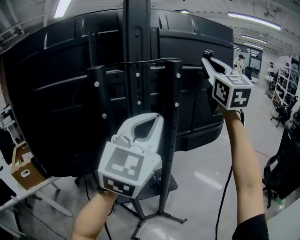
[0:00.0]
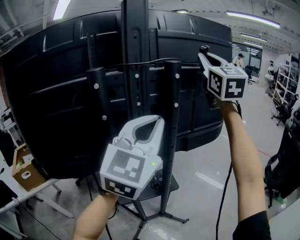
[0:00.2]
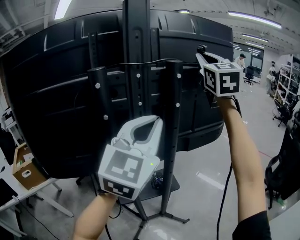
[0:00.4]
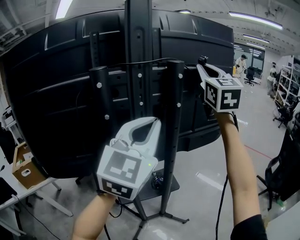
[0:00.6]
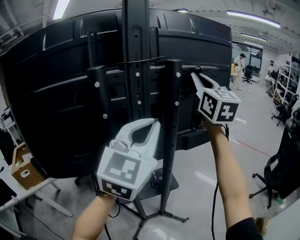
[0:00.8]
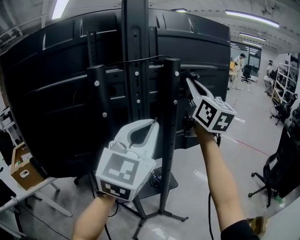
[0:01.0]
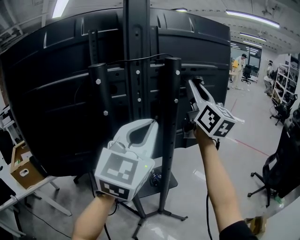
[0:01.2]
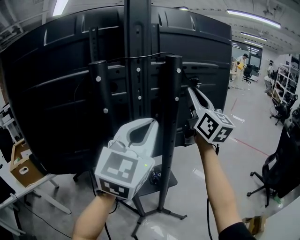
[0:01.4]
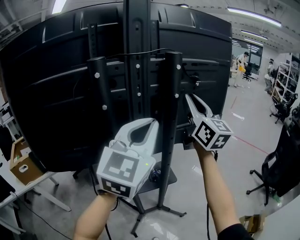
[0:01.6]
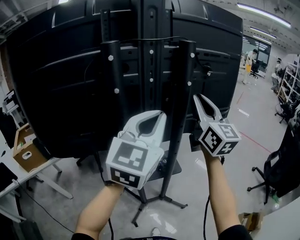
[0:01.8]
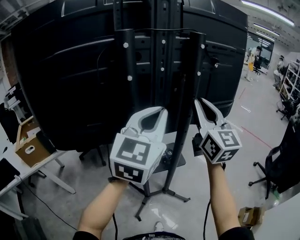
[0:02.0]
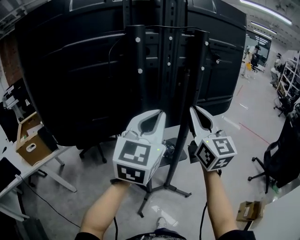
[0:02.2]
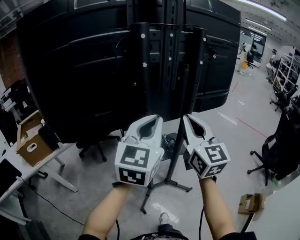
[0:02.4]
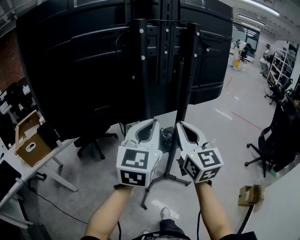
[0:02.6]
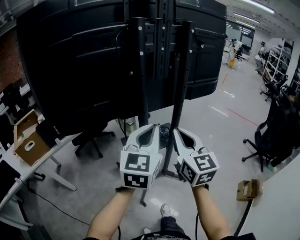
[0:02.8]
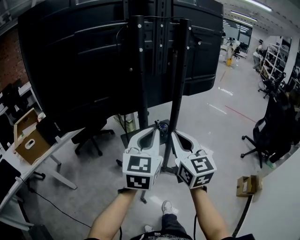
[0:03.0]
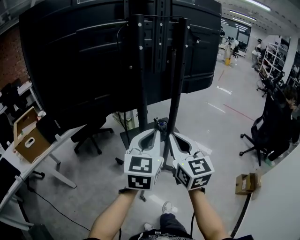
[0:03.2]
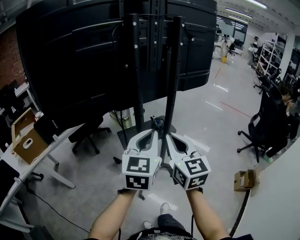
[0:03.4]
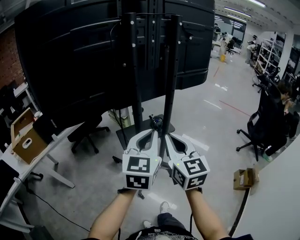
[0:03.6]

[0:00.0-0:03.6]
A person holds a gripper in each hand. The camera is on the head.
0:00.0 to 0:01.8: The right gripper goes about 20 cm downward, and changes its angle by approximately 20 degrees. The left gripper travels downward by roughly 5 cm.
0:01.8 to 0:03.6: The left gripper moves backward and downward, roughly 25 cm; the right gripper shifts some 35 cm backward, downward and to the left, and rotates about 20 degrees.

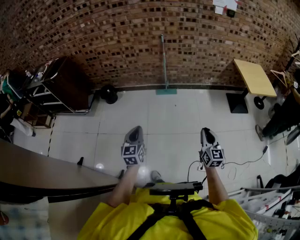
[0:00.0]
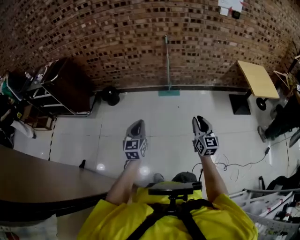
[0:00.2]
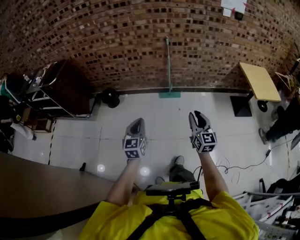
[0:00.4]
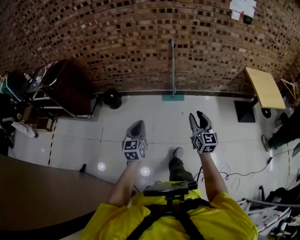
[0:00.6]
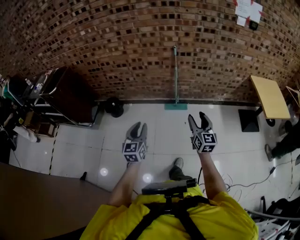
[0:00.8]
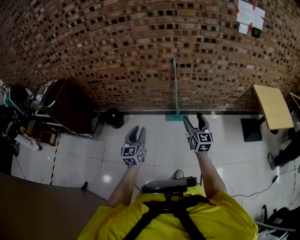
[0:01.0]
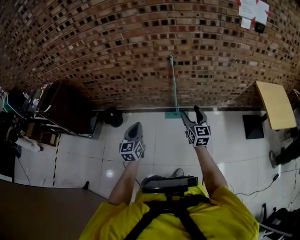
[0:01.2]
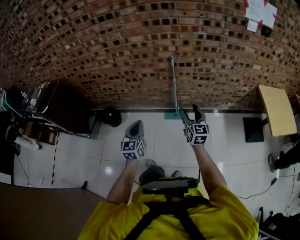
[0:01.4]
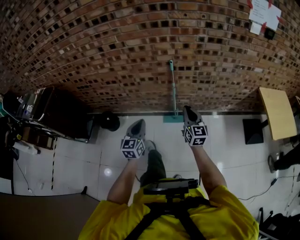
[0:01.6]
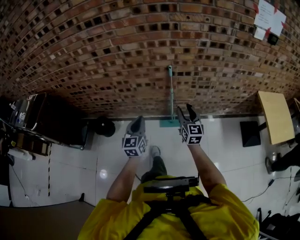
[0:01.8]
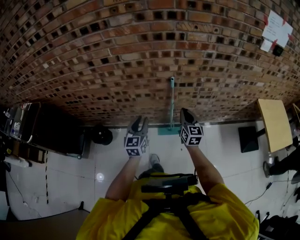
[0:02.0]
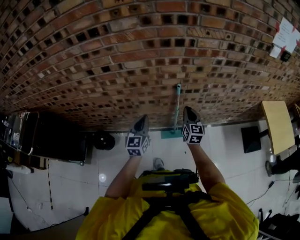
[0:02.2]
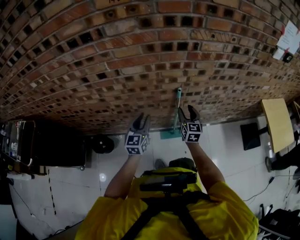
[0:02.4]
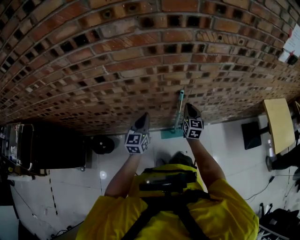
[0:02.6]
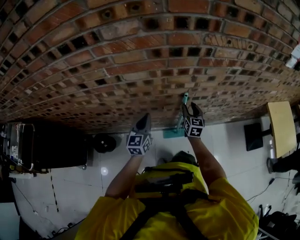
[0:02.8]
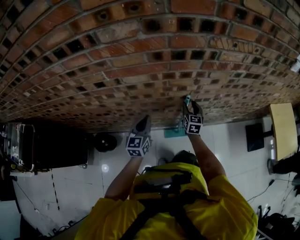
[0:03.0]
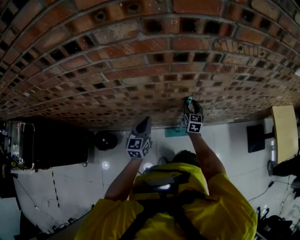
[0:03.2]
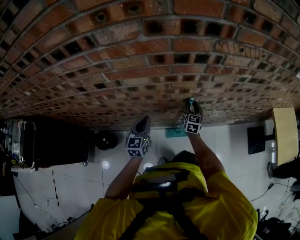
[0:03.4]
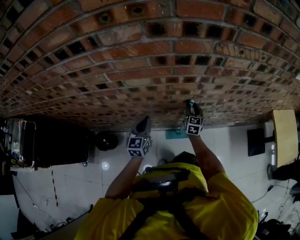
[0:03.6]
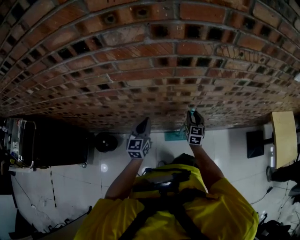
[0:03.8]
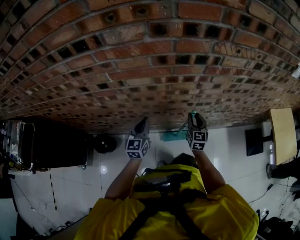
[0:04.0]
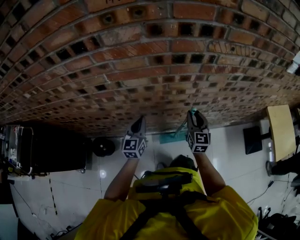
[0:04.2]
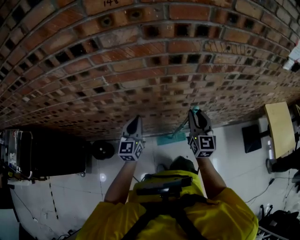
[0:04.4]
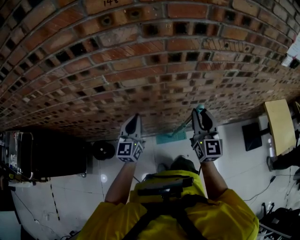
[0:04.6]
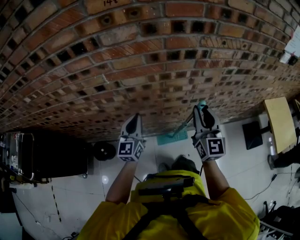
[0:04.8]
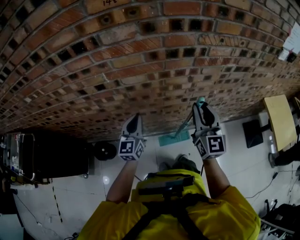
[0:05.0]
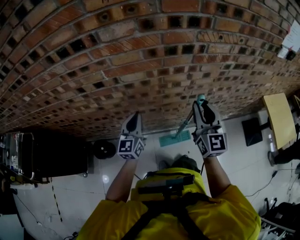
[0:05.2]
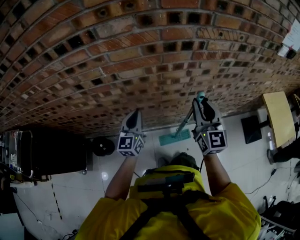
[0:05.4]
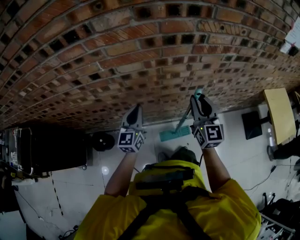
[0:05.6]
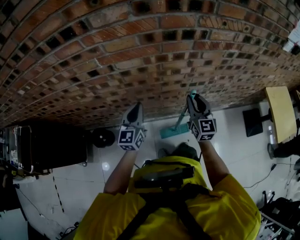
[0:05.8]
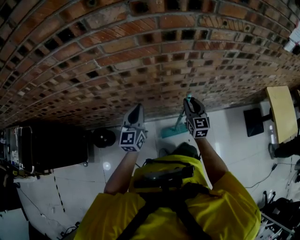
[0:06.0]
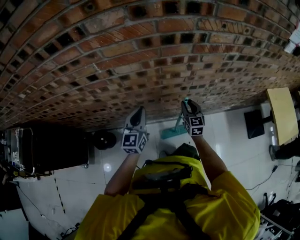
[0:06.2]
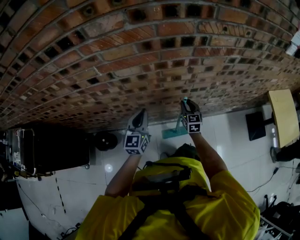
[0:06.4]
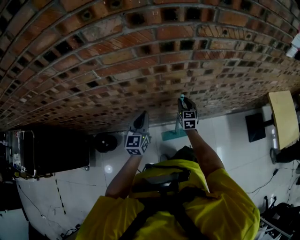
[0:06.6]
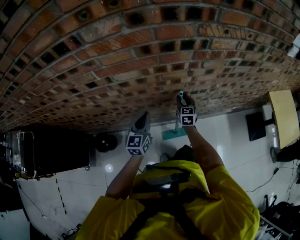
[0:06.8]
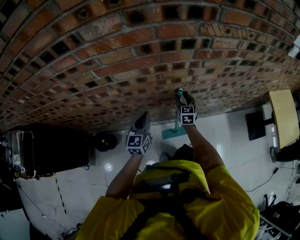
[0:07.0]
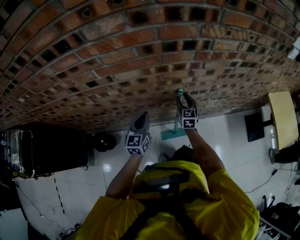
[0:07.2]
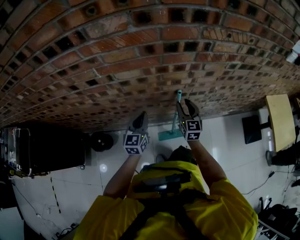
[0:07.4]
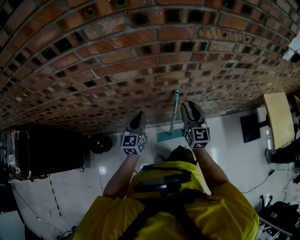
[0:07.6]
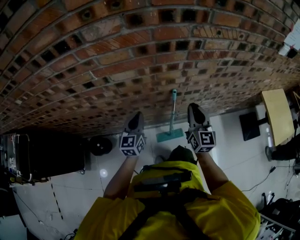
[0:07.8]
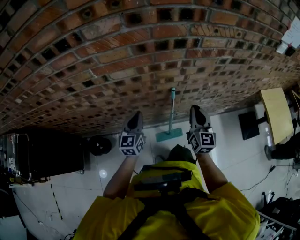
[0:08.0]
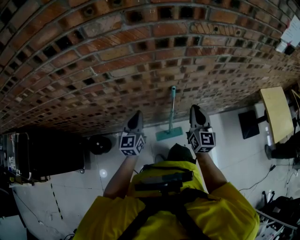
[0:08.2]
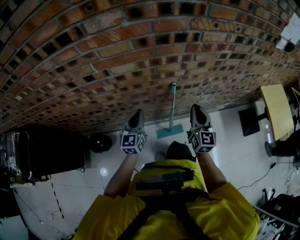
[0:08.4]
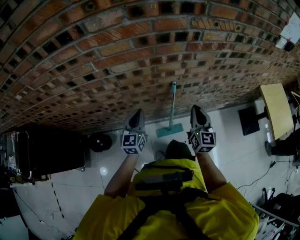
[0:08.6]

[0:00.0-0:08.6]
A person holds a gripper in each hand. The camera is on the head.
0:00.0 to 0:01.4: The pair of grippers is taken forward, some 60 cm. The right gripper opens, while the left gripper opens and closes again.
0:01.4 to 0:02.8: The two grippers travel together, forward, some 50 cm. The right gripper closes and opens again; the left gripper opens and closes again.
0:02.8 to 0:04.4: The left gripper ends up some 5 cm from where it was; the right gripper is displaced upward by approximately 15 cm.
0:04.4 to 0:05.8: The right gripper travels upward and back again, about 10 cm each way.
0:05.8 to 0:07.2: The left gripper travels downward by approximately 5 cm, while the right gripper shifts about 20 cm downward and forward.
0:07.2 to 0:08.6: The right gripper moves backward and upward, some 20 cm, and closes up.

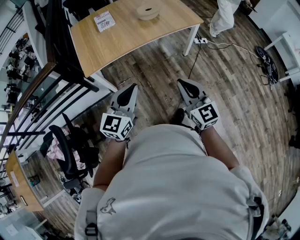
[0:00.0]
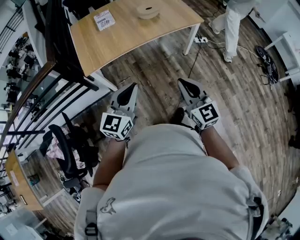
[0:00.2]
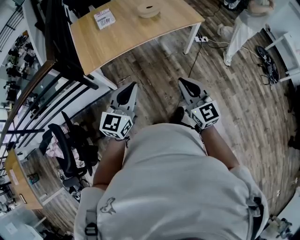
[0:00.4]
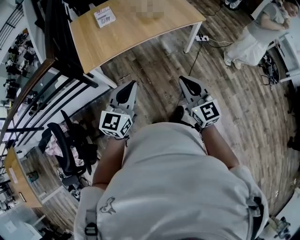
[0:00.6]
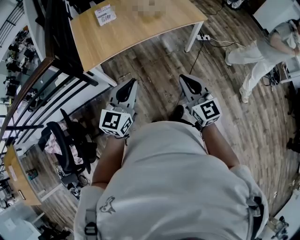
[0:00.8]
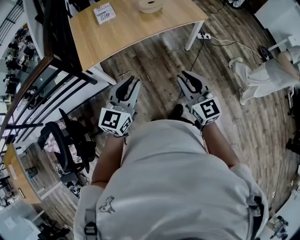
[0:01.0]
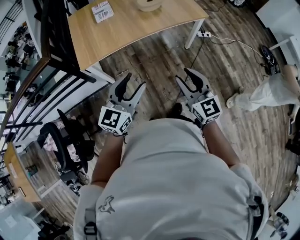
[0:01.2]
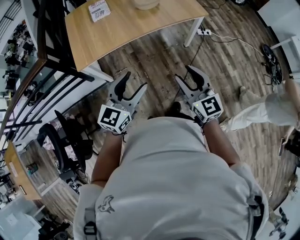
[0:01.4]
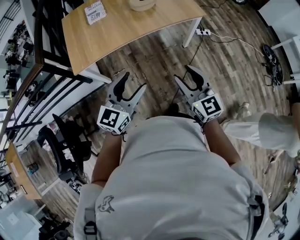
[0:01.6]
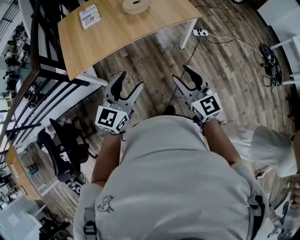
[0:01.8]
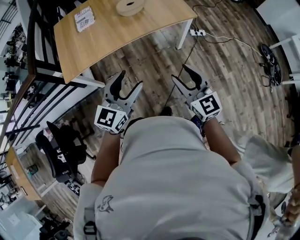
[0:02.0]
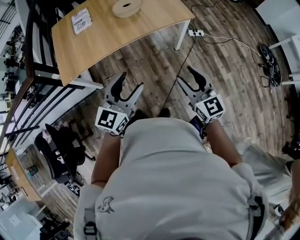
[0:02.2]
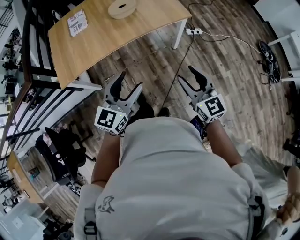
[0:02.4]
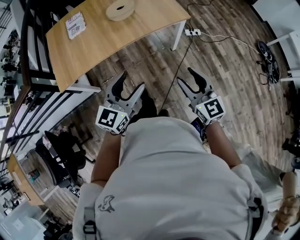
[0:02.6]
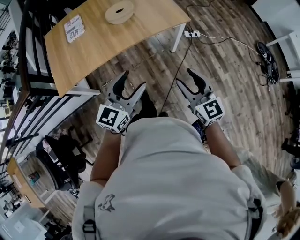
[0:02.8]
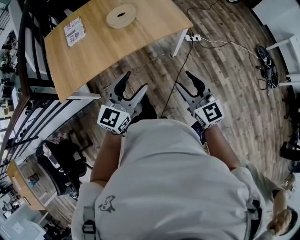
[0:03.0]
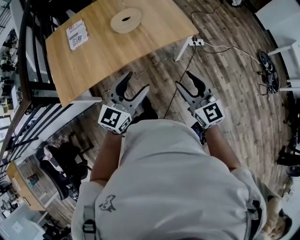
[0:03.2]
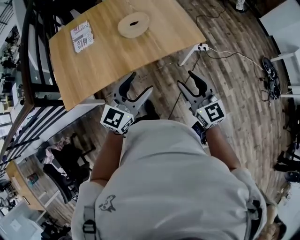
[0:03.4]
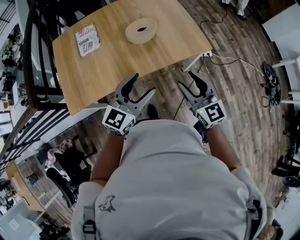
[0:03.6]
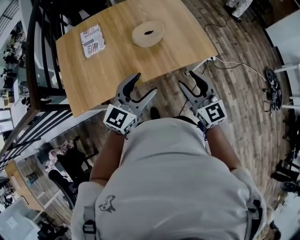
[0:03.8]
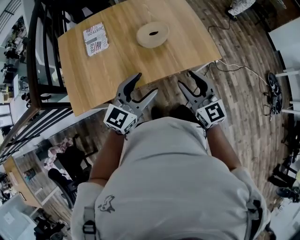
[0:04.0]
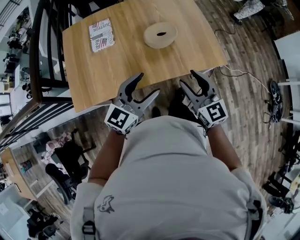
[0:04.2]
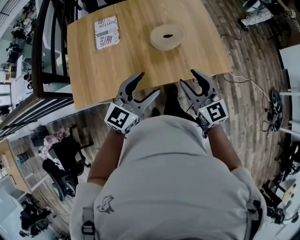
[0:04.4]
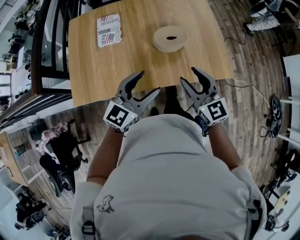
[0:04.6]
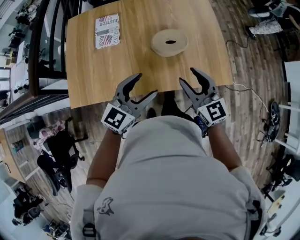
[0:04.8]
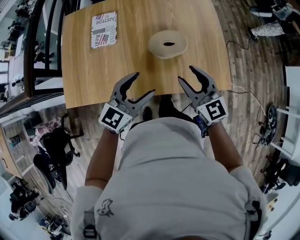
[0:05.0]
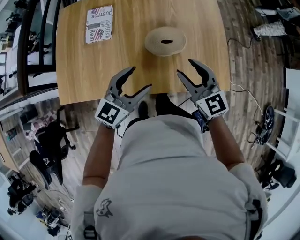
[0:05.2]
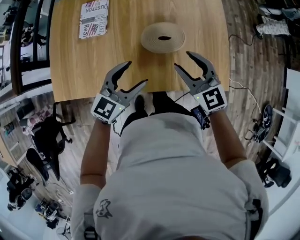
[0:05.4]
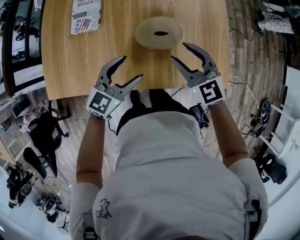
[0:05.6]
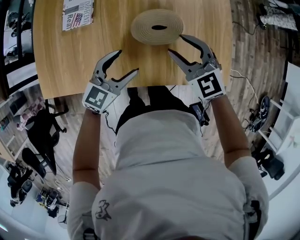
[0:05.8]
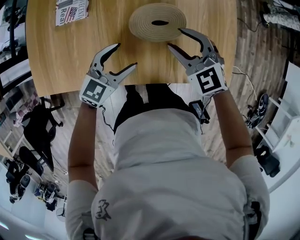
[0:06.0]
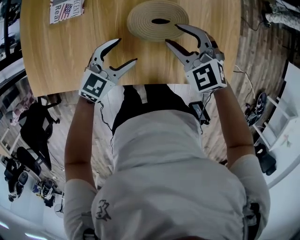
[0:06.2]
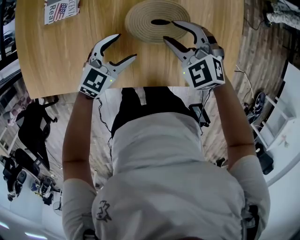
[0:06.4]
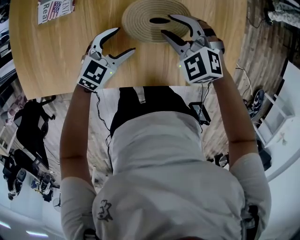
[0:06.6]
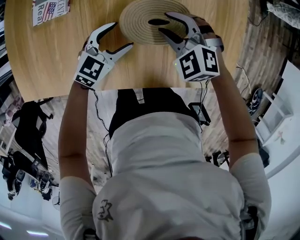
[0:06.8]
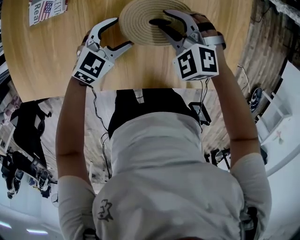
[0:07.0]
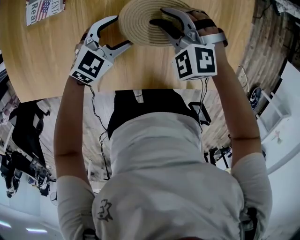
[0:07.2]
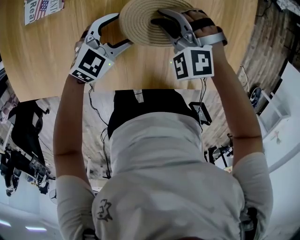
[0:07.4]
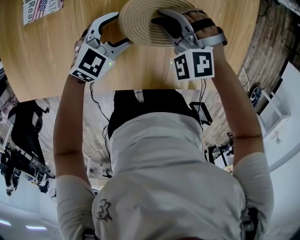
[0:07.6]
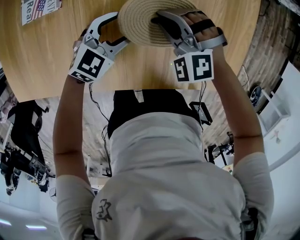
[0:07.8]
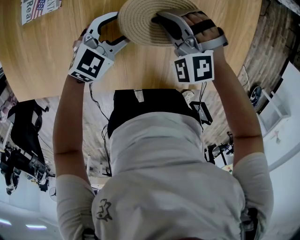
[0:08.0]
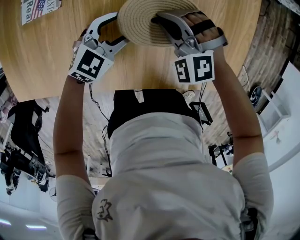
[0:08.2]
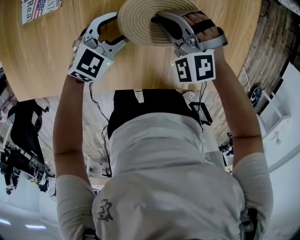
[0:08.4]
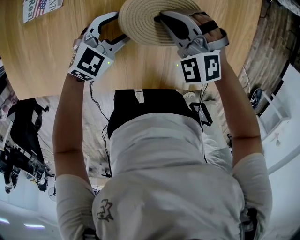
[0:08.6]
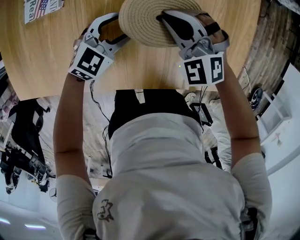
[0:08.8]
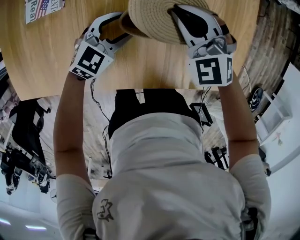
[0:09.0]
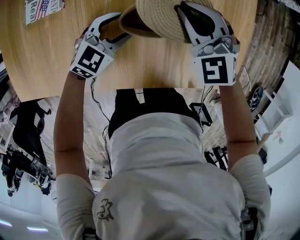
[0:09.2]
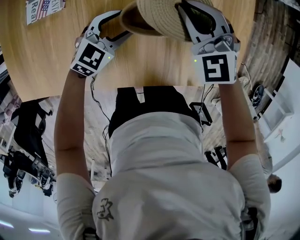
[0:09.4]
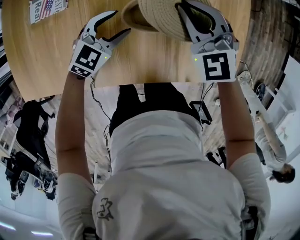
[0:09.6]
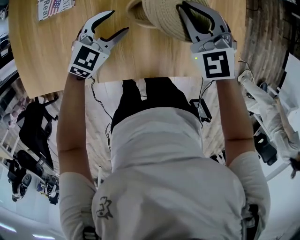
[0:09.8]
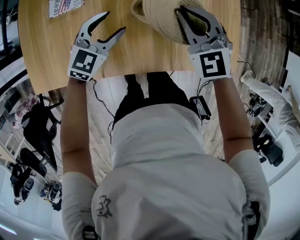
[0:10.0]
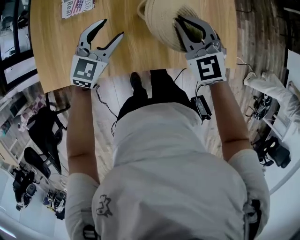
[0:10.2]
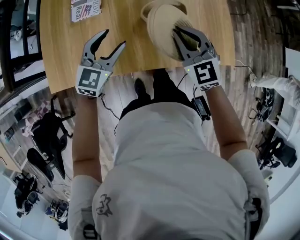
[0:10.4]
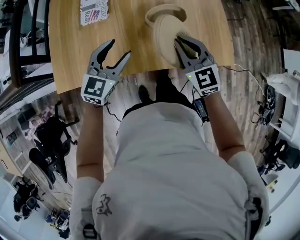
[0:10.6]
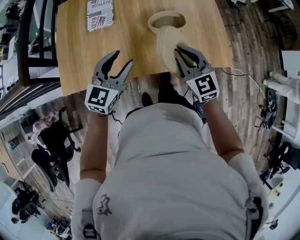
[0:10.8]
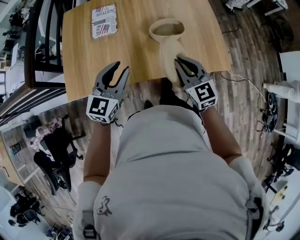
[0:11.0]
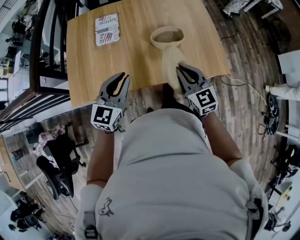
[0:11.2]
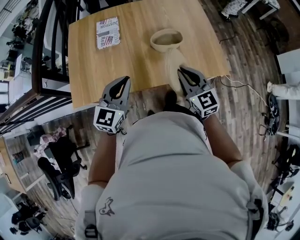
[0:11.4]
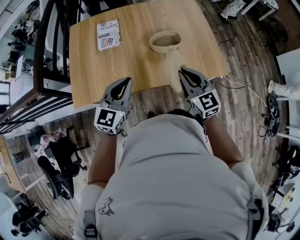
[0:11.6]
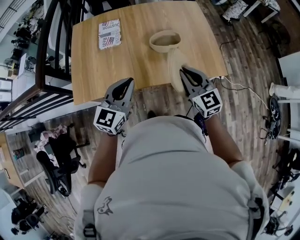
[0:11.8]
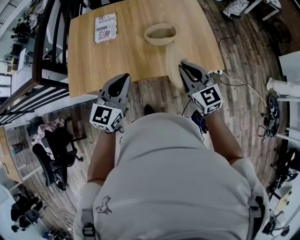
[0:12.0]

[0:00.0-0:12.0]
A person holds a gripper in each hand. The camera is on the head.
0:00.0 to 0:01.6: The left gripper is displaced to the right and forward by about 15 cm, and opens. Meanwhile the right gripper moves forward and to the right, roughly 15 cm, and opens.
0:01.6 to 0:03.0: Both grippers travel together forward and to the right, approximately 20 cm.
0:03.0 to 0:04.4: Both grippers travel together forward and to the left, approximately 30 cm.
0:04.4 to 0:06.0: The right gripper moves forward and downward, about 30 cm, and rotates roughly 40 degrees. The left gripper goes about 30 cm downward and forward, and turns by approximately 20 degrees.
0:06.0 to 0:07.6: Both grippers move downward and forward, about 15 cm. The right gripper rotates about 40 degrees, and closes its fingers.
0:07.6 to 0:09.0: The right gripper goes some 5 cm upward, and rotates roughly 20 degrees.
0:09.0 to 0:10.4: The right gripper goes roughly 25 cm backward and upward, and rotates about 30 degrees, while the left gripper heads upward, backward and to the left, covering some 25 cm.
0:10.4 to 0:12.0: Both grippers travel together backward and upward, about 20 cm. The left gripper closes.
